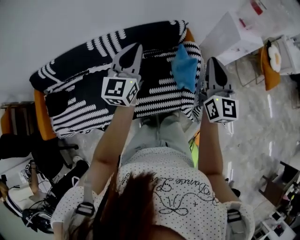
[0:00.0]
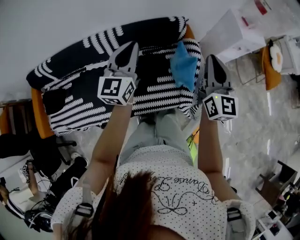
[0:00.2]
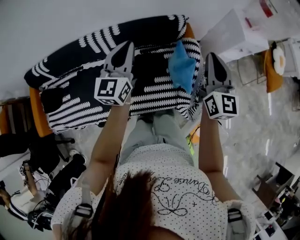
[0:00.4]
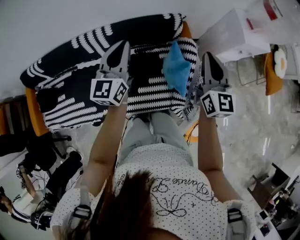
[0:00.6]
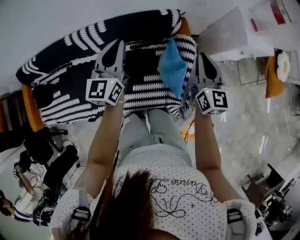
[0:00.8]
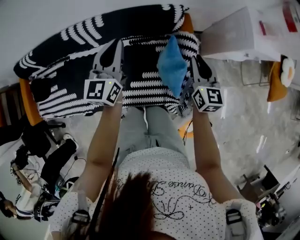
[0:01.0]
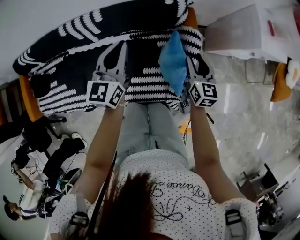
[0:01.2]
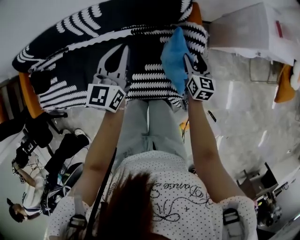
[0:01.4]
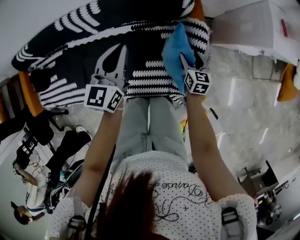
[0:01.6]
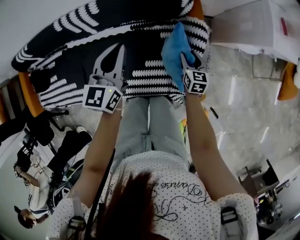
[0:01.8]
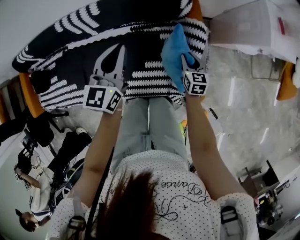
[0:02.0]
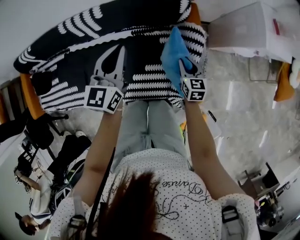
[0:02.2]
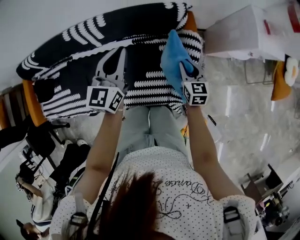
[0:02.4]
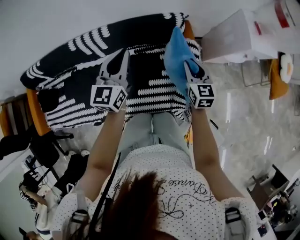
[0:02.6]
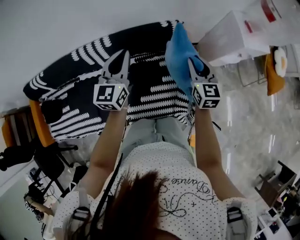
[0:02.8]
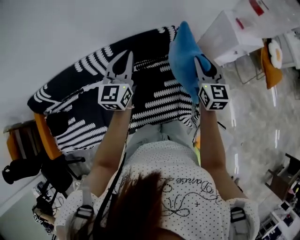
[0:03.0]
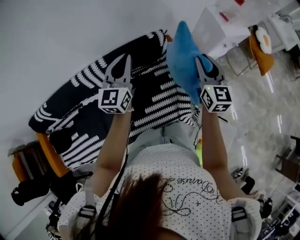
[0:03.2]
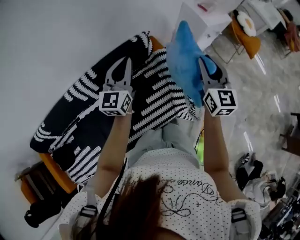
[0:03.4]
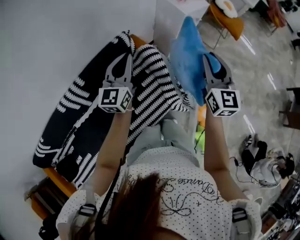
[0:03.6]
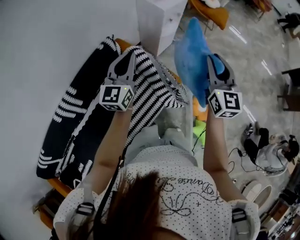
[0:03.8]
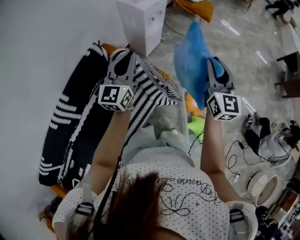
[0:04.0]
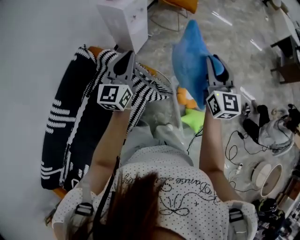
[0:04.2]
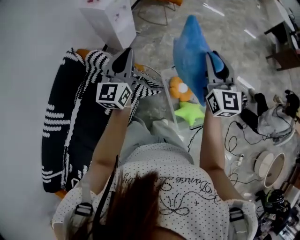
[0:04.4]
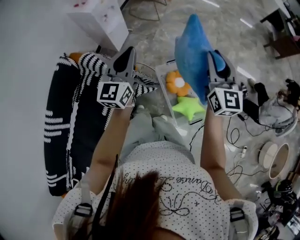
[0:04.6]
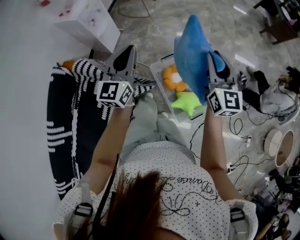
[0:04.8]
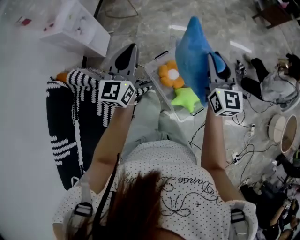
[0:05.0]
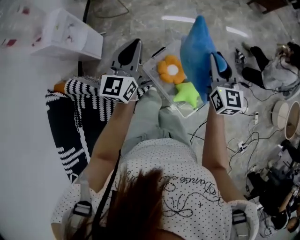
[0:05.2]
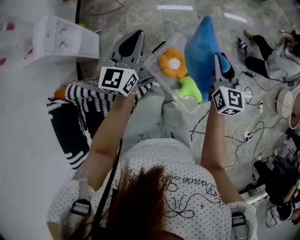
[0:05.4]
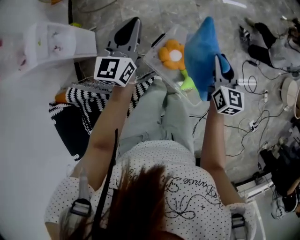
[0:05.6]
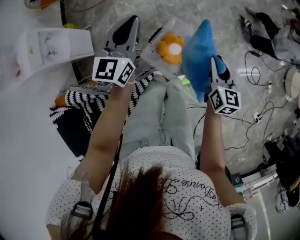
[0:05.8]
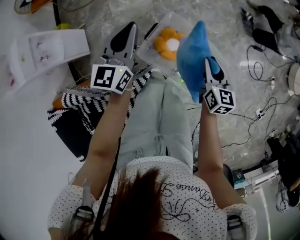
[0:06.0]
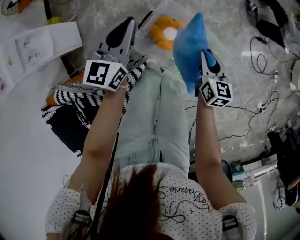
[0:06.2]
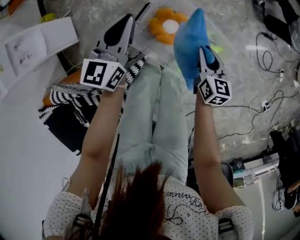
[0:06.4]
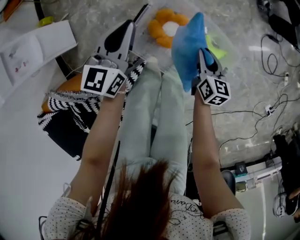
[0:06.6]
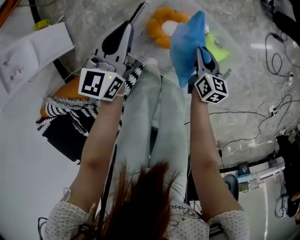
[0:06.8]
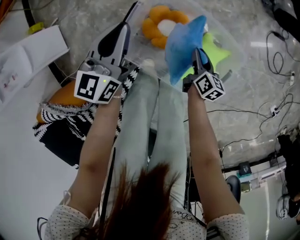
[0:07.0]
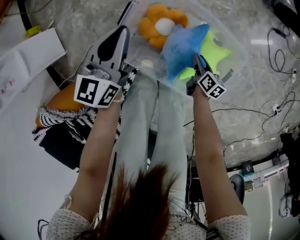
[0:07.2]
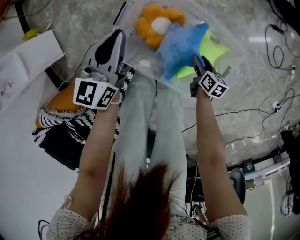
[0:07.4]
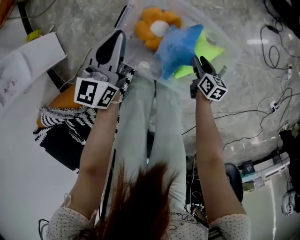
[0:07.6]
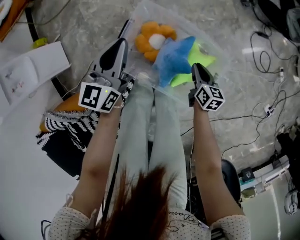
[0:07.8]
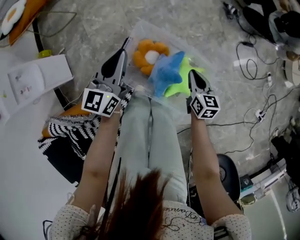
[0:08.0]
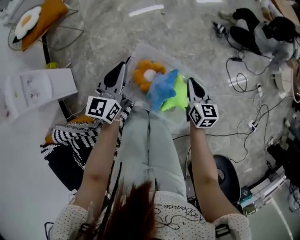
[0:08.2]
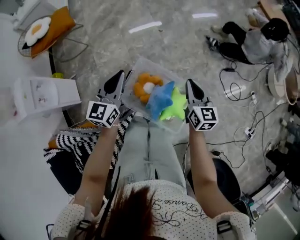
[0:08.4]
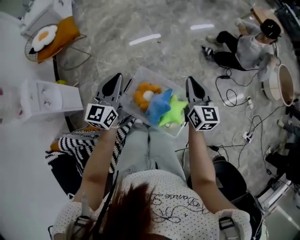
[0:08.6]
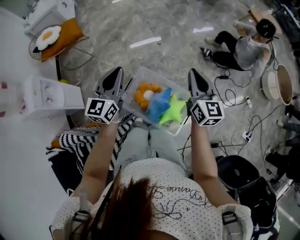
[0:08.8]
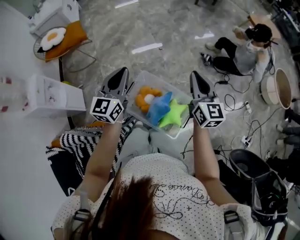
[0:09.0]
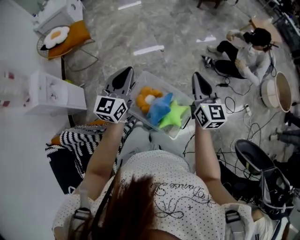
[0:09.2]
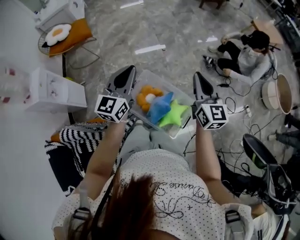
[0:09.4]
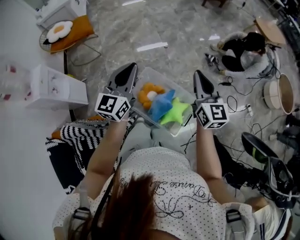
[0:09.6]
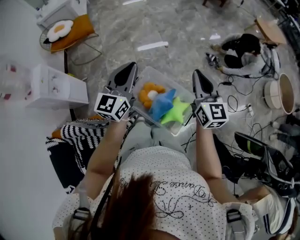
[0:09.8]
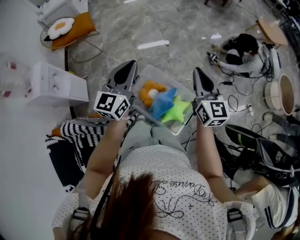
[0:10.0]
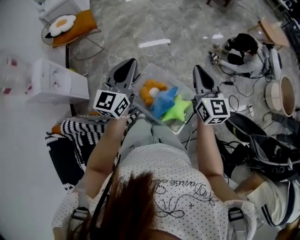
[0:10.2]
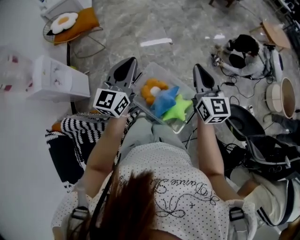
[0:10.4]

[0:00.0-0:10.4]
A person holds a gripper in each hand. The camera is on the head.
0:00.0 to 0:01.4: The left gripper is displaced downward and forward by some 25 cm. Meanwhile the right gripper travels downward and forward by about 40 cm, angles its fingers downward, by about 30 degrees, and opens up.
0:01.4 to 0:03.0: The right gripper travels upward by approximately 30 cm, rotates some 20 degrees, and closes its fingers, while the left gripper shifts approximately 15 cm upward.
0:03.0 to 0:04.4: Both grippers are carried some 50 cm. The left gripper rotates about 50 degrees. Meanwhile the right gripper changes its angle by about 50 degrees.
0:04.4 to 0:06.0: The left gripper changes place by some 40 cm, and turns by about 40 degrees, while the right gripper heads downward, covering some 35 cm, and tips its fingers downward by about 30 degrees.
0:06.0 to 0:07.4: The grippers both shift downward by roughly 35 cm. The right gripper swivels roughly 40 degrees, and opens.
0:07.4 to 0:09.0: The right gripper is displaced upward by approximately 70 cm, points its fingers roughly 40 degrees further upward, and closes up; the left gripper is displaced upward by approximately 50 cm, and changes its angle by roughly 20 degrees.
0:09.0 to 0:10.4: The grippers move only a little.

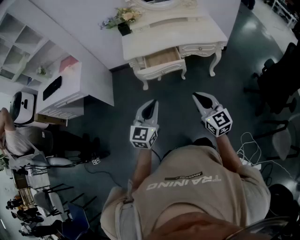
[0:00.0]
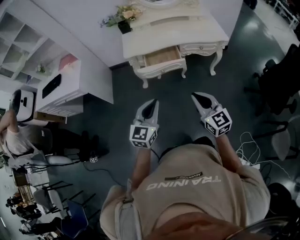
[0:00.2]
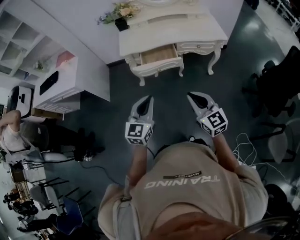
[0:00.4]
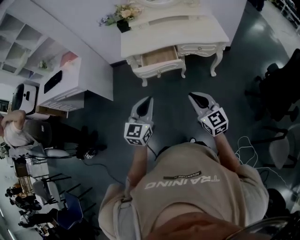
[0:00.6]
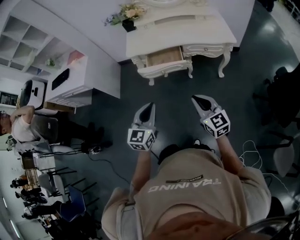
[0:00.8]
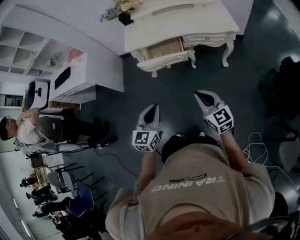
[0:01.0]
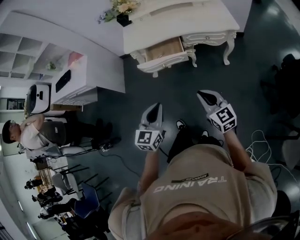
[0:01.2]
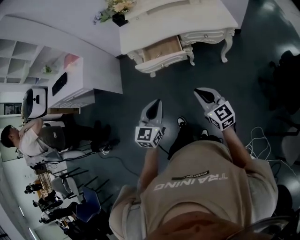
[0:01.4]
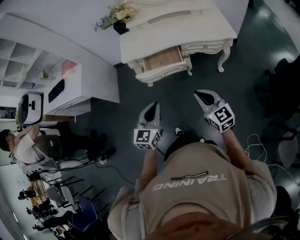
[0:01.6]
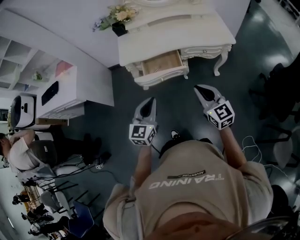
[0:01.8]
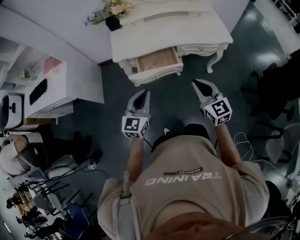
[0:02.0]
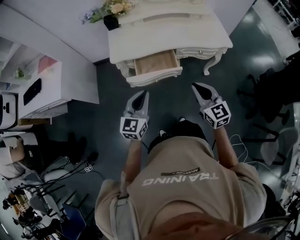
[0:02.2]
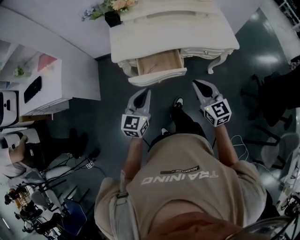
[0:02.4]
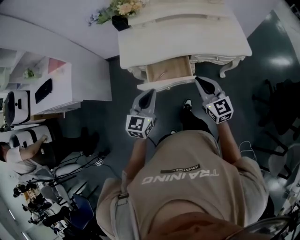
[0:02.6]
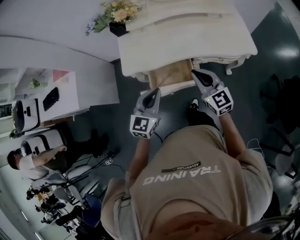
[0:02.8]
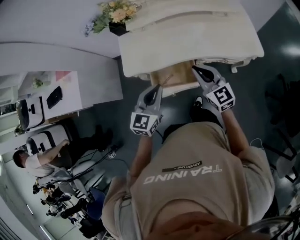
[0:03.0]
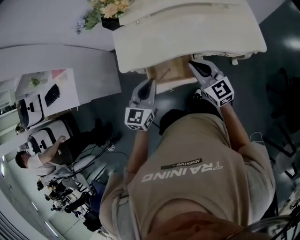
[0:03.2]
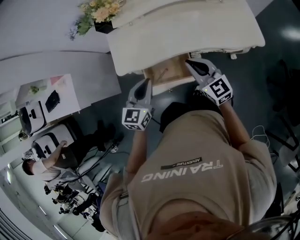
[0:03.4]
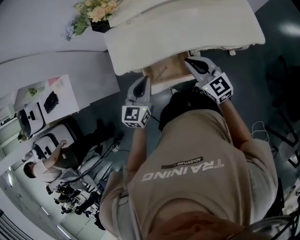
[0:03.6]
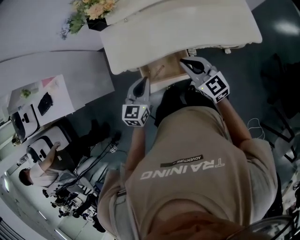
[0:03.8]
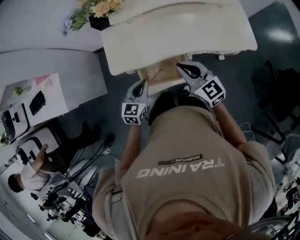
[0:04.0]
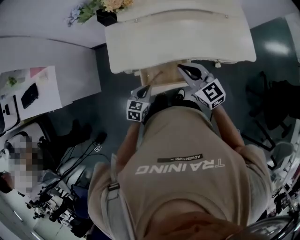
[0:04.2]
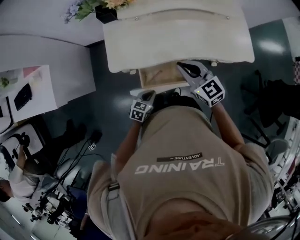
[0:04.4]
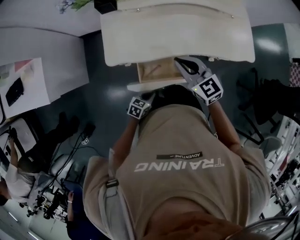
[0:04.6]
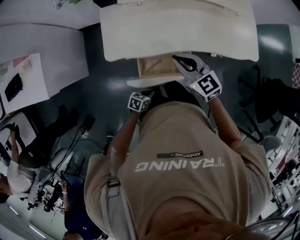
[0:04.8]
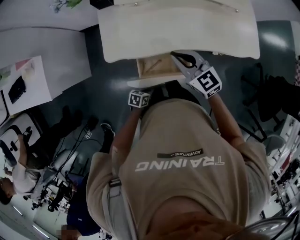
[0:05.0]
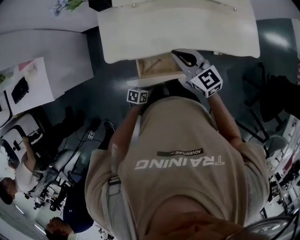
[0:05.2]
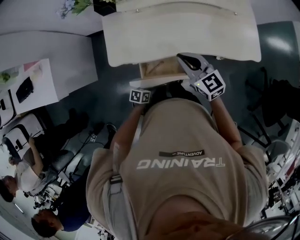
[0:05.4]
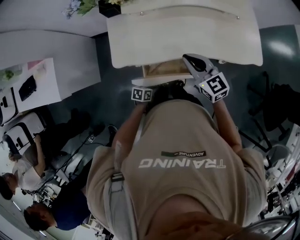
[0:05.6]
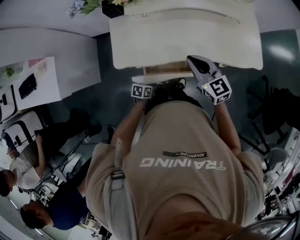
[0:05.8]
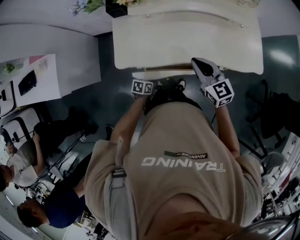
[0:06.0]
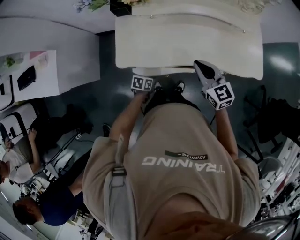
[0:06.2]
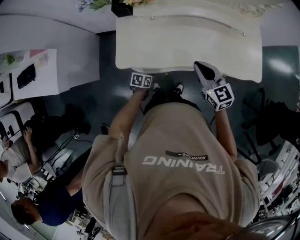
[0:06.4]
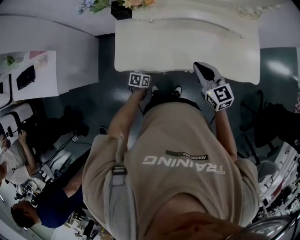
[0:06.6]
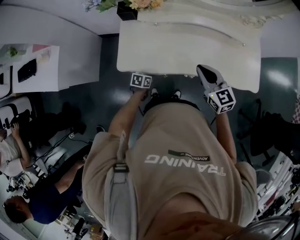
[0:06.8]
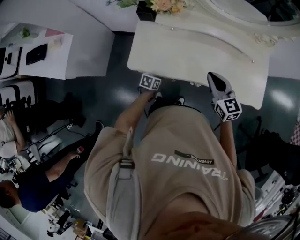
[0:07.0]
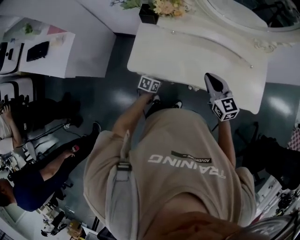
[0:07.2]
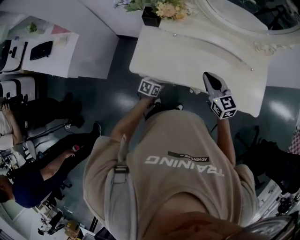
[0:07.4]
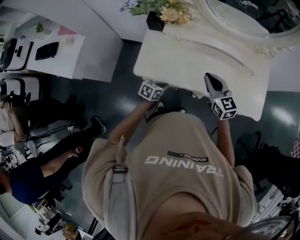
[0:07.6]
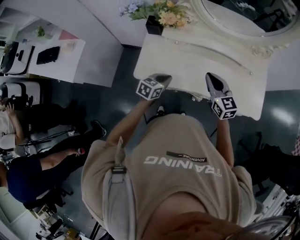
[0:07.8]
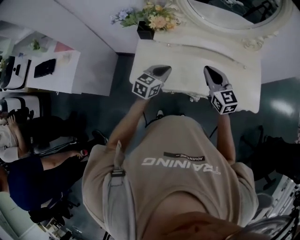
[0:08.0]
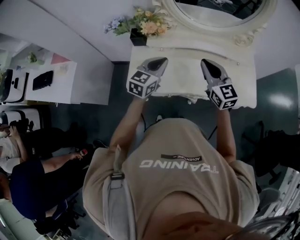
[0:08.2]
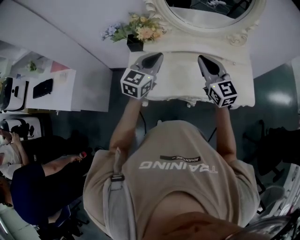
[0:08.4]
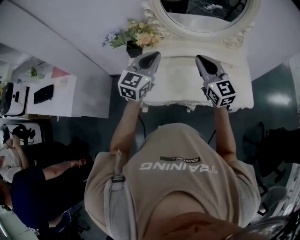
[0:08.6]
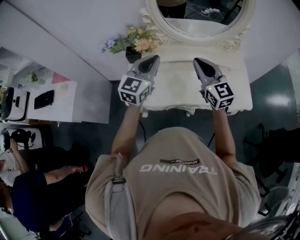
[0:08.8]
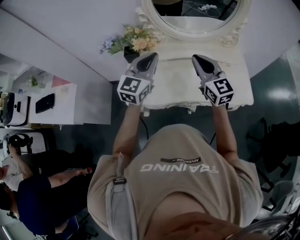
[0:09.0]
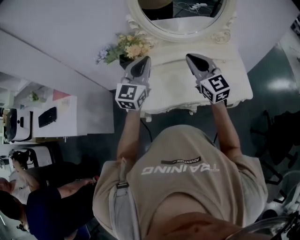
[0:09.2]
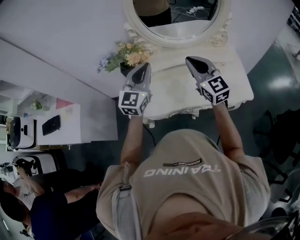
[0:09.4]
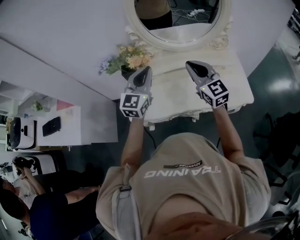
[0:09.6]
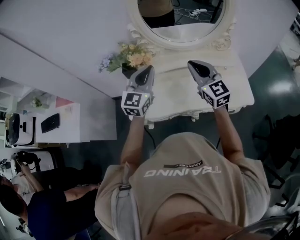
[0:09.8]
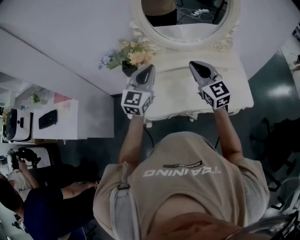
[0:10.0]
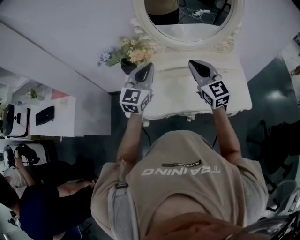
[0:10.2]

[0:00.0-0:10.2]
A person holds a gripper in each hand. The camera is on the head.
0:00.0 to 0:01.4: The two grippers go approximately 15 cm to the right, forward and downward.
0:01.4 to 0:03.0: The two grippers travel together, forward, roughly 40 cm.
0:03.0 to 0:04.4: The right gripper moves to the left and forward, some 15 cm. Meanwhile the left gripper is displaced downward by some 25 cm, and turns by some 30 degrees.
0:04.4 to 0:05.8: The right gripper heads forward, covering some 5 cm, while the left gripper goes some 10 cm downward, and turns by about 30 degrees.
0:05.8 to 0:07.2: The left gripper shifts roughly 10 cm forward.
0:07.2 to 0:08.8: The right gripper travels upward by about 20 cm, and rotates roughly 20 degrees, while the left gripper heads upward, covering some 50 cm, and points its fingers some 40 degrees further upward.
0:08.8 to 0:10.2: The grippers stay close to where they were, moving slightly.

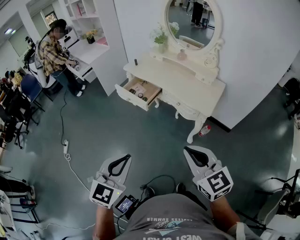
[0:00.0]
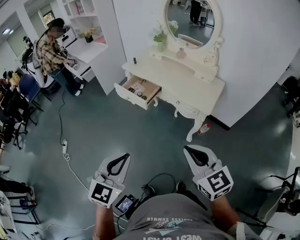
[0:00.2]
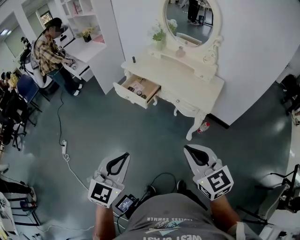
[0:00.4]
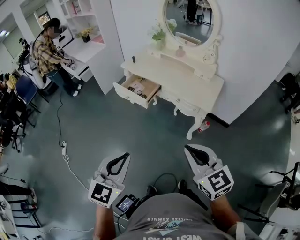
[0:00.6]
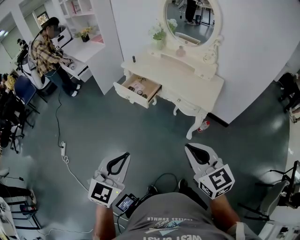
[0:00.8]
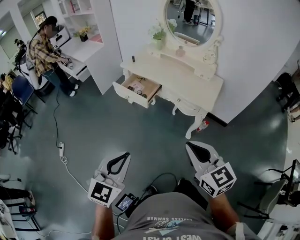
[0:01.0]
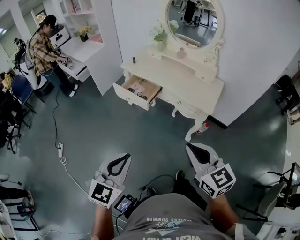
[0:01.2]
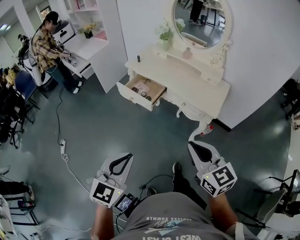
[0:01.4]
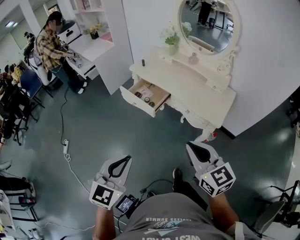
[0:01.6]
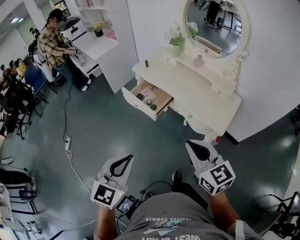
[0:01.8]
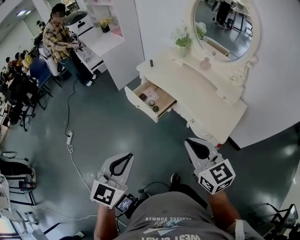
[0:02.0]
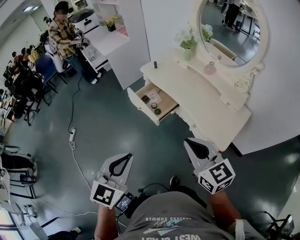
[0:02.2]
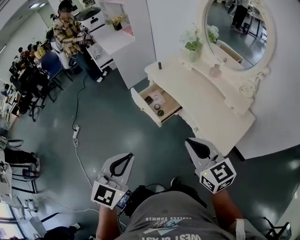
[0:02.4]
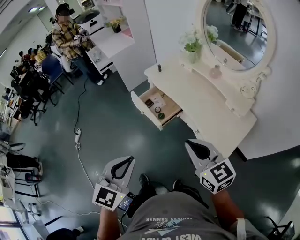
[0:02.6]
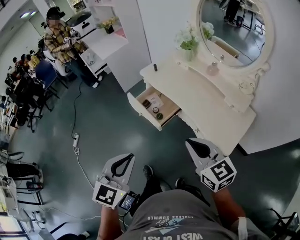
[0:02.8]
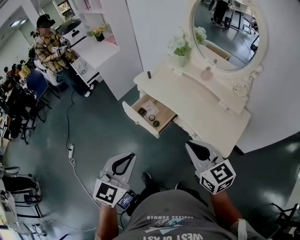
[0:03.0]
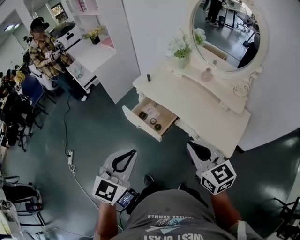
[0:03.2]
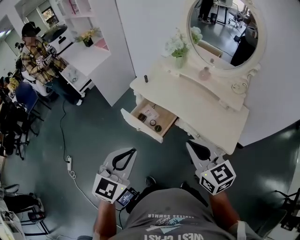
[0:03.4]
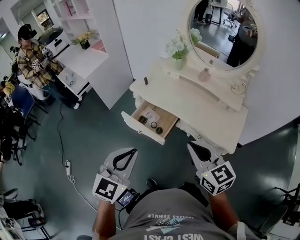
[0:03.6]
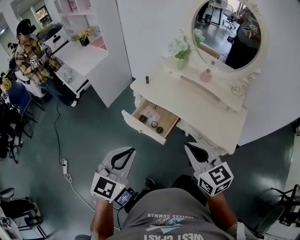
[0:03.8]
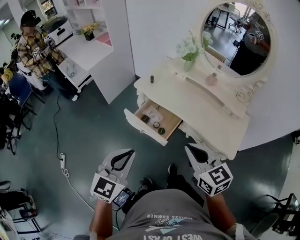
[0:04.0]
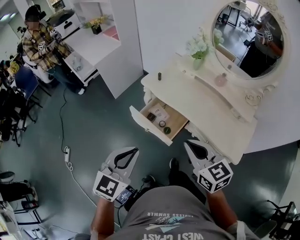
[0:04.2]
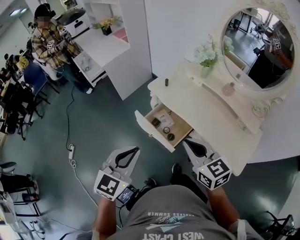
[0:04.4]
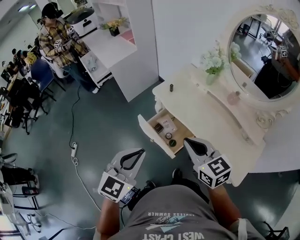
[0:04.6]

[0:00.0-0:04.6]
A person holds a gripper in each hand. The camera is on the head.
0:00.0 to 0:01.6: The left gripper travels forward and to the left by approximately 10 cm; the right gripper shifts some 15 cm forward.
0:01.6 to 0:03.0: Both grippers move forward, about 25 cm.
0:03.0 to 0:04.6: Both grippers move forward and to the left, roughly 25 cm.
